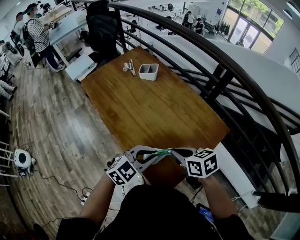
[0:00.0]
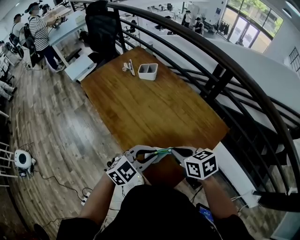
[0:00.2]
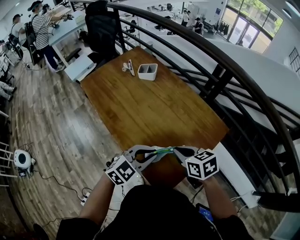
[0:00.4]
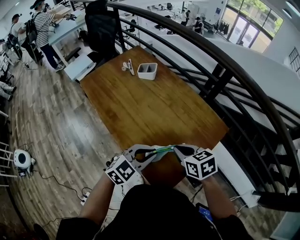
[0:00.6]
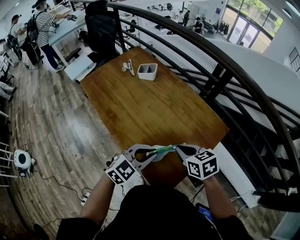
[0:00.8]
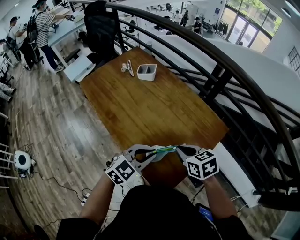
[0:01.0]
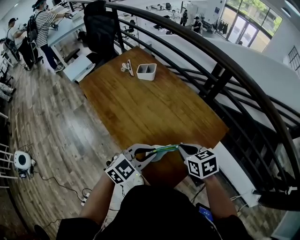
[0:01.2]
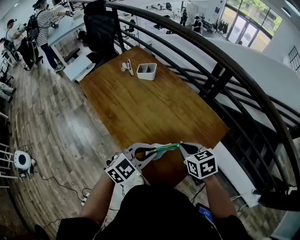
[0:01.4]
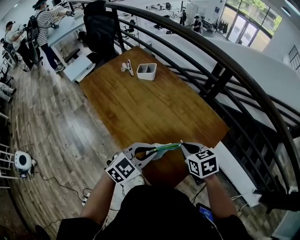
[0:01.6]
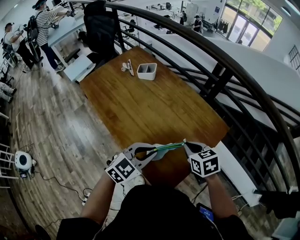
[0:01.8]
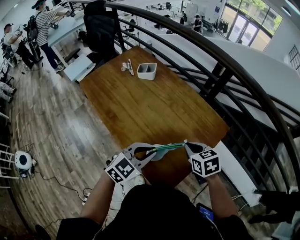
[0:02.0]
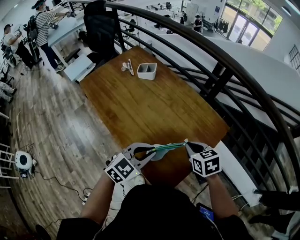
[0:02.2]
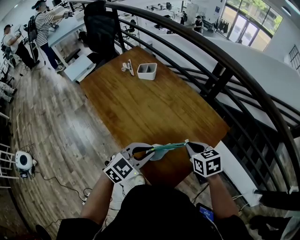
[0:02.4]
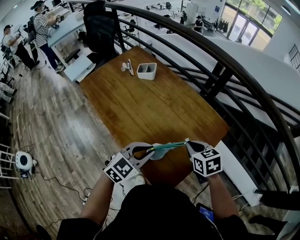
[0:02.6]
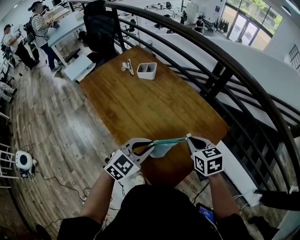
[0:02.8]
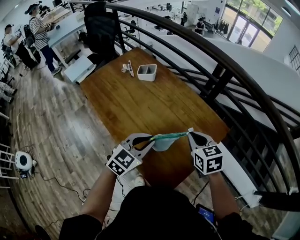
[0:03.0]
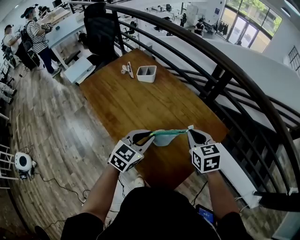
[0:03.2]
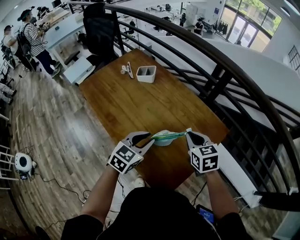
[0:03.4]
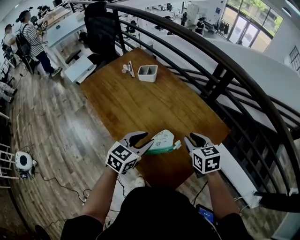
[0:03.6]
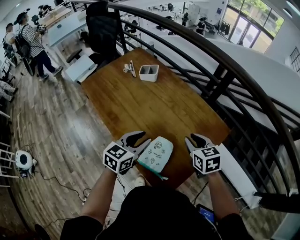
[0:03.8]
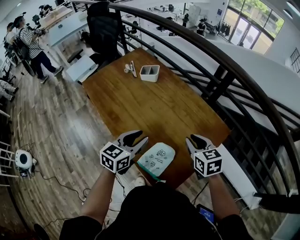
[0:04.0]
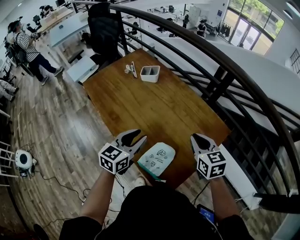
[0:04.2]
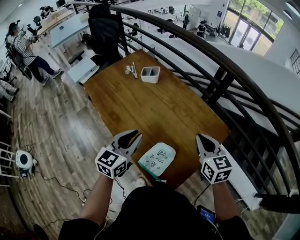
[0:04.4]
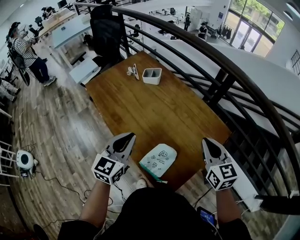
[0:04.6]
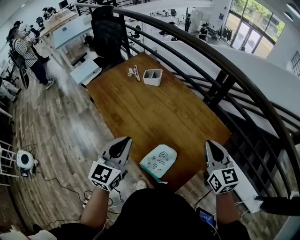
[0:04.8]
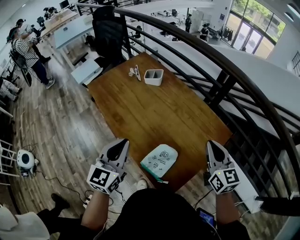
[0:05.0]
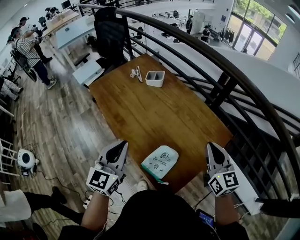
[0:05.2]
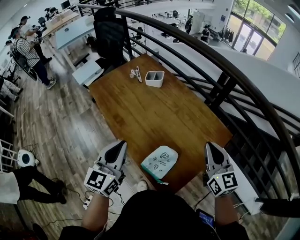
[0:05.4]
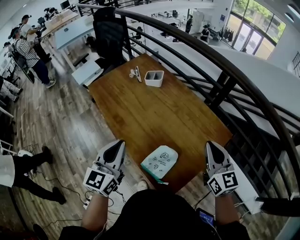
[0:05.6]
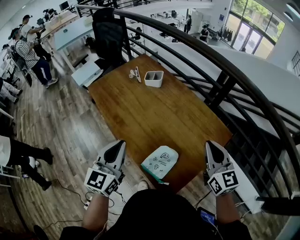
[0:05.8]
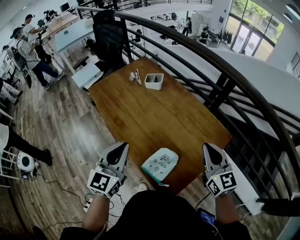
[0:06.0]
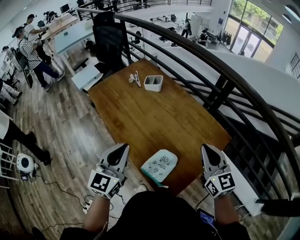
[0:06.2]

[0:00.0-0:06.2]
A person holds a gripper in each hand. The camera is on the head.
0:00.0 to 0:01.6: The right gripper changes place by roughly 5 cm.
0:01.6 to 0:03.2: The two grippers go some 5 cm forward.
0:03.2 to 0:04.6: The left gripper moves to the left and upward, roughly 10 cm, rotates approximately 20 degrees, and opens, then closes once more. Meanwhile the right gripper travels upward by roughly 5 cm, and opens, then closes again.
0:04.6 to 0:06.2: The left gripper shifts by roughly 5 cm.

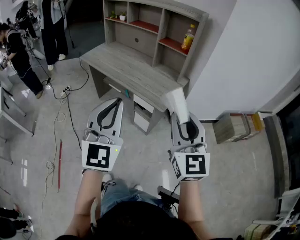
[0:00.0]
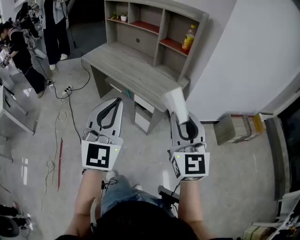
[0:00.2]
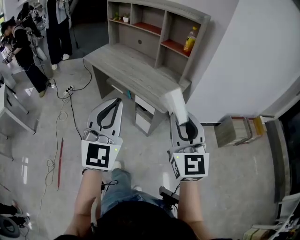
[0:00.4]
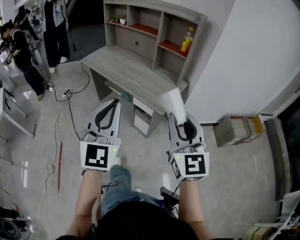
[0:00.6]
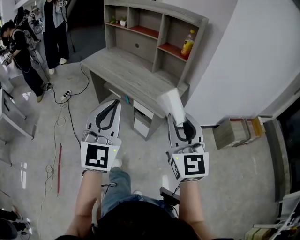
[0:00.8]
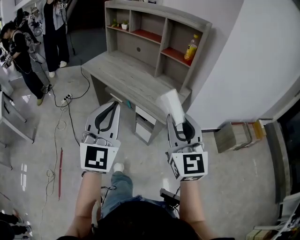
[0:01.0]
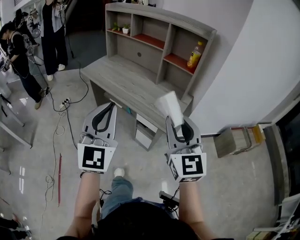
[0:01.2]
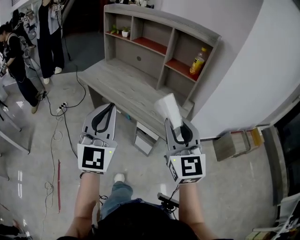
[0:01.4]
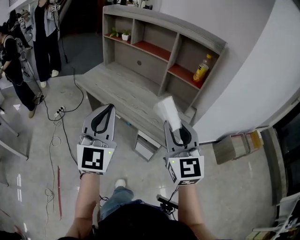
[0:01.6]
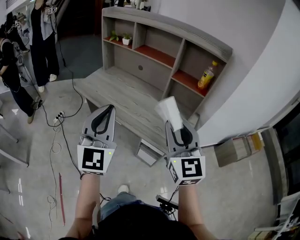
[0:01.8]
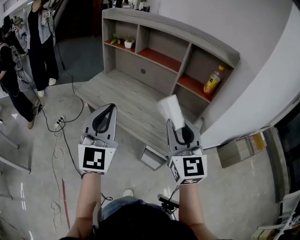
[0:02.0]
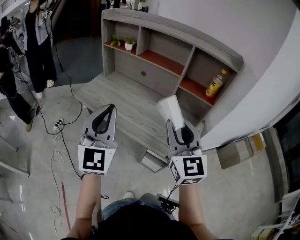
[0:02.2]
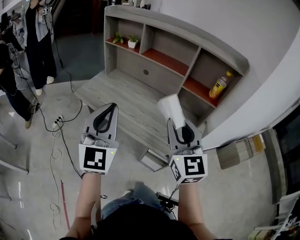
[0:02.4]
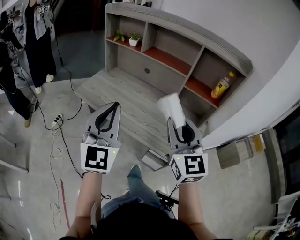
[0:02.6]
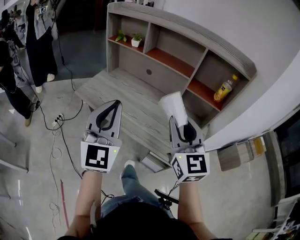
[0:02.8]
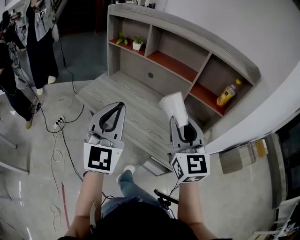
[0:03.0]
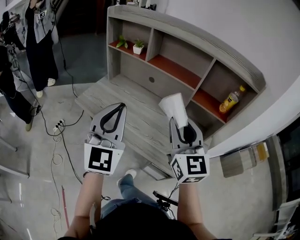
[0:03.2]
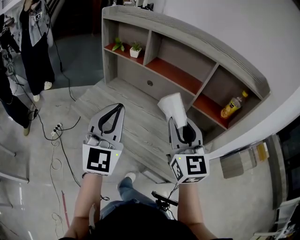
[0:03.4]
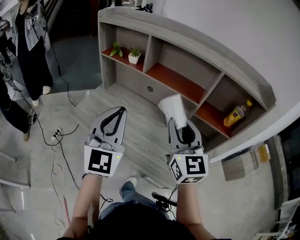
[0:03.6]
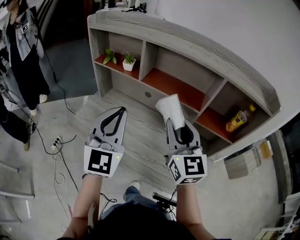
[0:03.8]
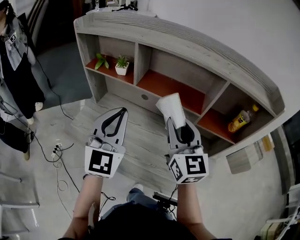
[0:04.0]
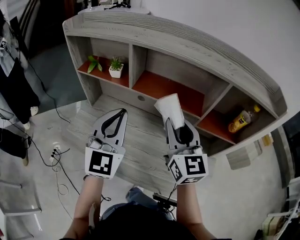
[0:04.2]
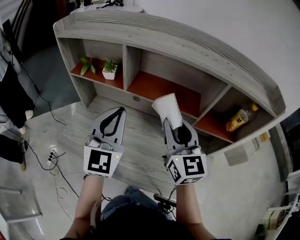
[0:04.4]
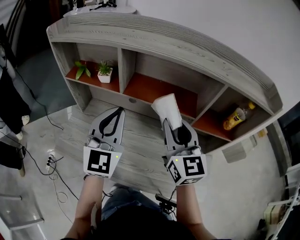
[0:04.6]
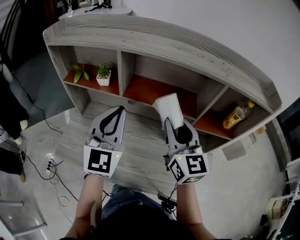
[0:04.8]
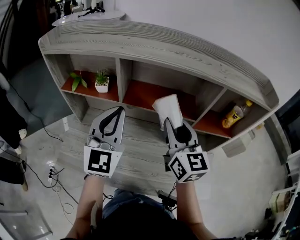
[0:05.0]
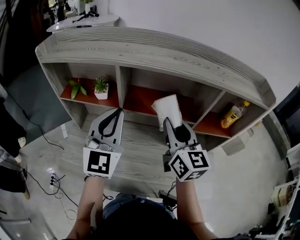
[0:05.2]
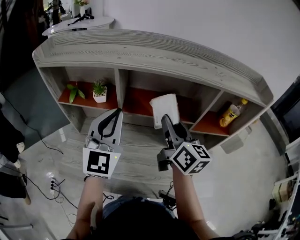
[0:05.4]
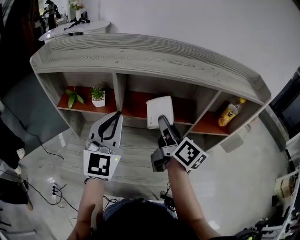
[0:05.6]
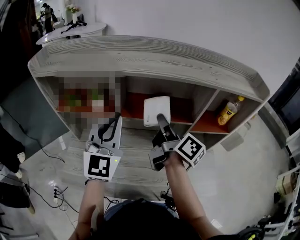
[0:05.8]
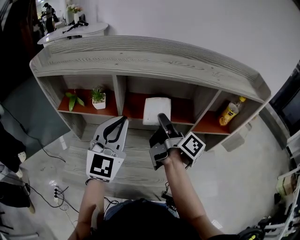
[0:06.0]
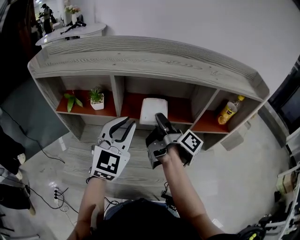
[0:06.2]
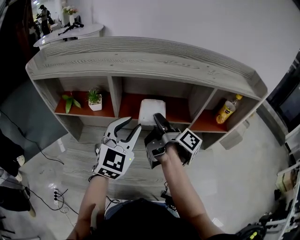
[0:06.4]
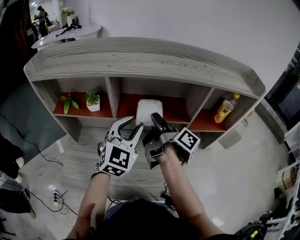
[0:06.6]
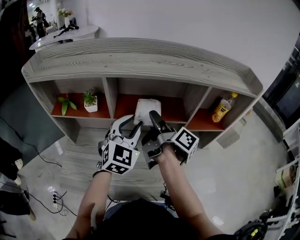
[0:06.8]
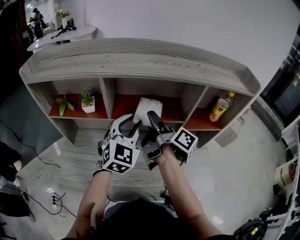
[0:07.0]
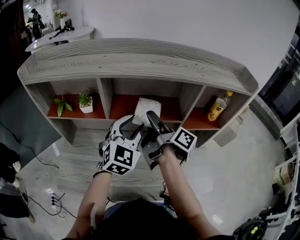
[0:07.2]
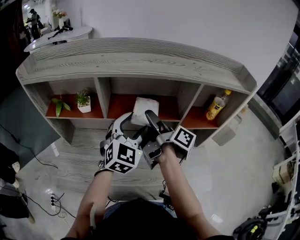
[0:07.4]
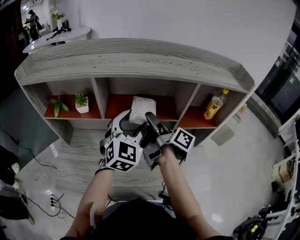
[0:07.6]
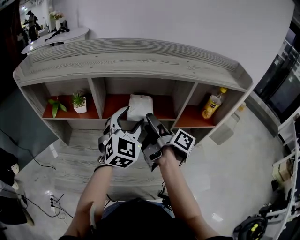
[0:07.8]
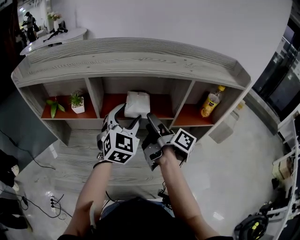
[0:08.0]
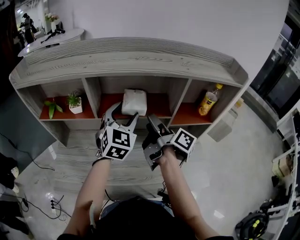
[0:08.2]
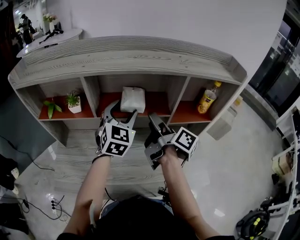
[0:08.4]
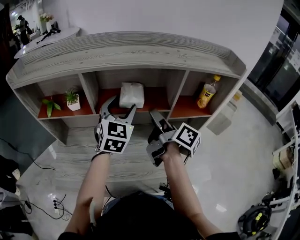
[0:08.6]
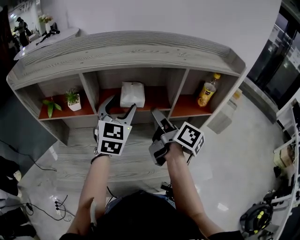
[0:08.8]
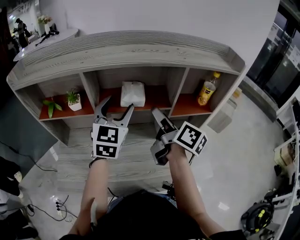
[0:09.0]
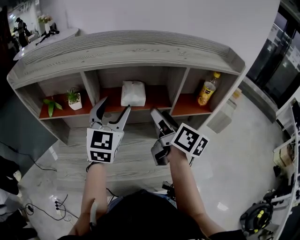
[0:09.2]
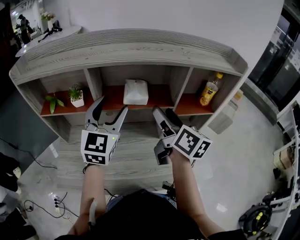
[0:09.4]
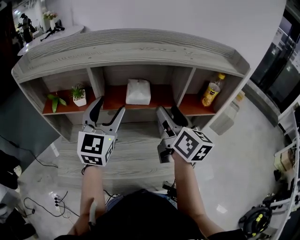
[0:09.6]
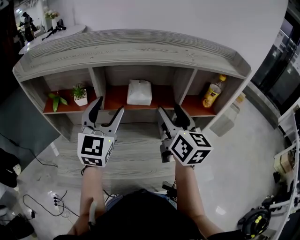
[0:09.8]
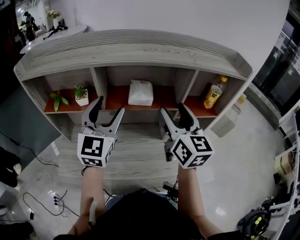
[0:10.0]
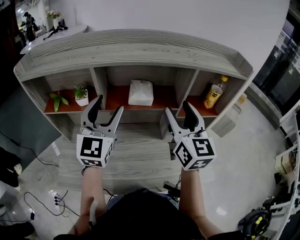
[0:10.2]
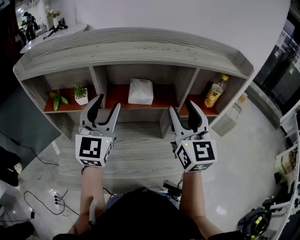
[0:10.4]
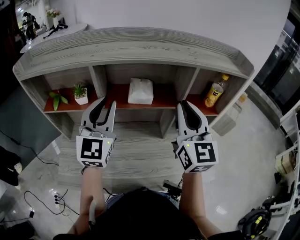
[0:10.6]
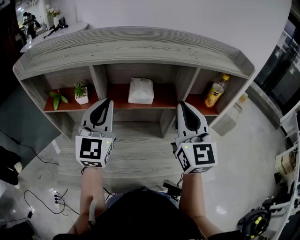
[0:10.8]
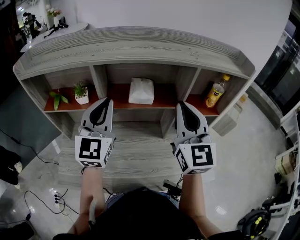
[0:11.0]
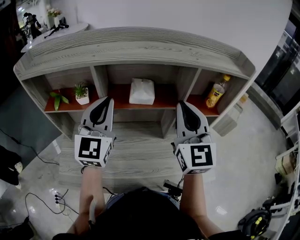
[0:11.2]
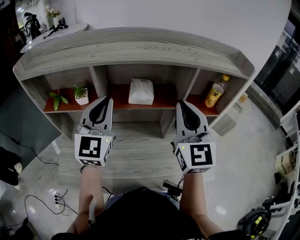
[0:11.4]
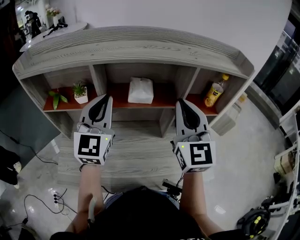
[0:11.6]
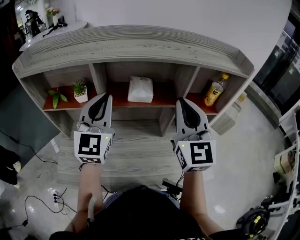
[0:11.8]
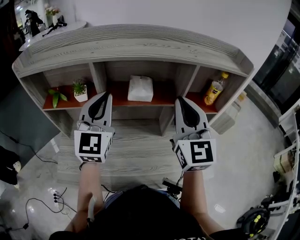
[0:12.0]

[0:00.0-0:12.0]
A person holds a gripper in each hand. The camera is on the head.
0:00.0 to 0:01.6: Both grippers move forward and to the left, some 25 cm.
0:01.6 to 0:03.0: The grippers both shift forward and to the left by roughly 25 cm.
0:03.0 to 0:04.4: The grippers both shift forward by roughly 30 cm.
0:04.4 to 0:06.0: The two grippers go about 5 cm forward. The right gripper rotates around the line of its fingers by approximately 80 degrees, clockwise from behind.
0:06.0 to 0:07.6: The left gripper heads to the right and downward, covering roughly 10 cm, and opens its fingers. Meanwhile the right gripper opens up.
0:07.6 to 0:09.0: The right gripper goes about 5 cm to the right, and changes its angle by roughly 30 degrees.
0:09.0 to 0:10.4: The left gripper moves to the left, about 5 cm, while the right gripper travels upward by about 10 cm, and rotates around the line of its fingers by roughly 60 degrees, counterclockwise from behind.
0:10.4 to 0:12.0: The left gripper closes up, while the right gripper closes.

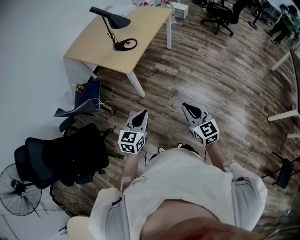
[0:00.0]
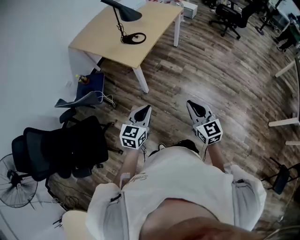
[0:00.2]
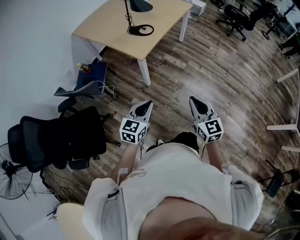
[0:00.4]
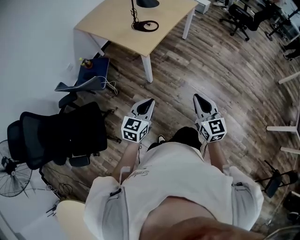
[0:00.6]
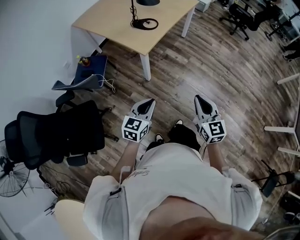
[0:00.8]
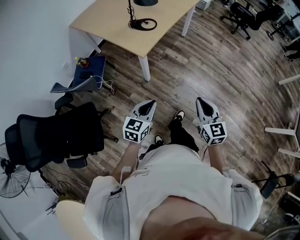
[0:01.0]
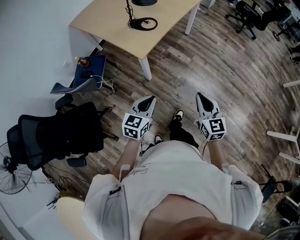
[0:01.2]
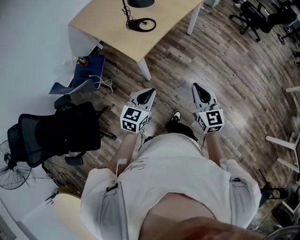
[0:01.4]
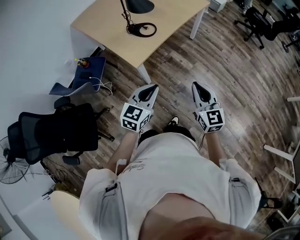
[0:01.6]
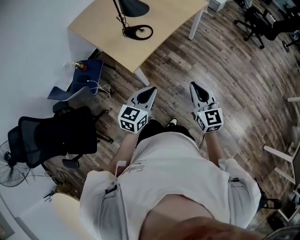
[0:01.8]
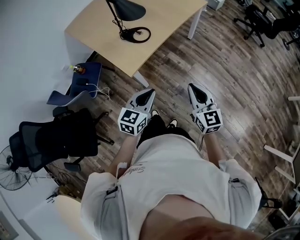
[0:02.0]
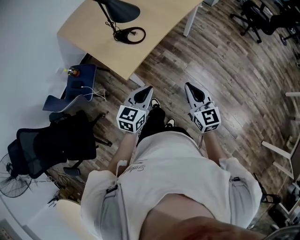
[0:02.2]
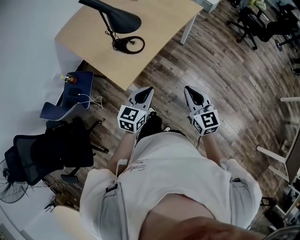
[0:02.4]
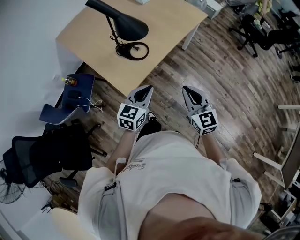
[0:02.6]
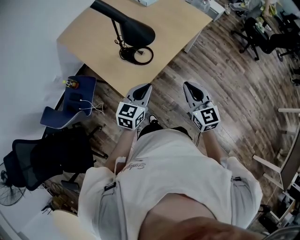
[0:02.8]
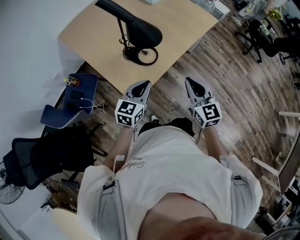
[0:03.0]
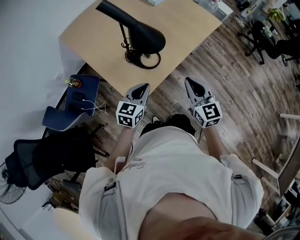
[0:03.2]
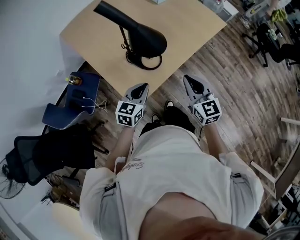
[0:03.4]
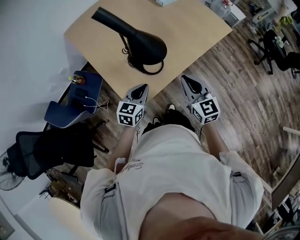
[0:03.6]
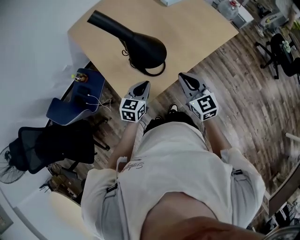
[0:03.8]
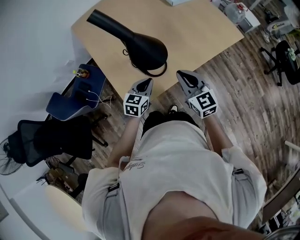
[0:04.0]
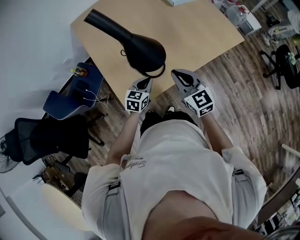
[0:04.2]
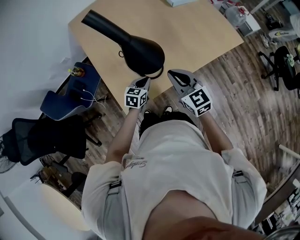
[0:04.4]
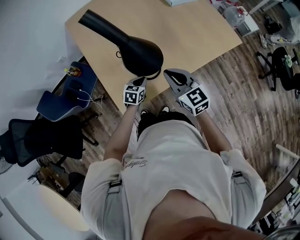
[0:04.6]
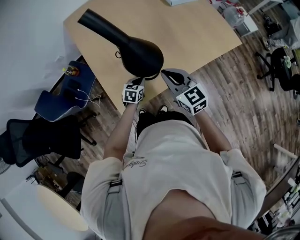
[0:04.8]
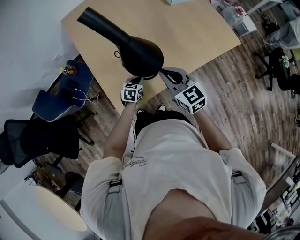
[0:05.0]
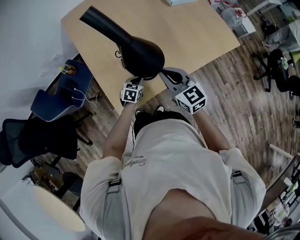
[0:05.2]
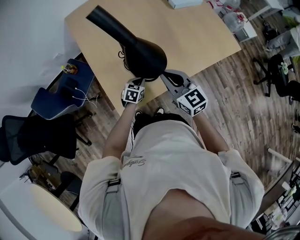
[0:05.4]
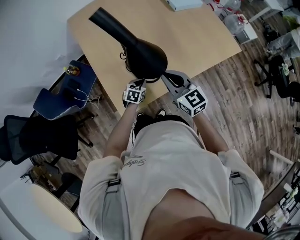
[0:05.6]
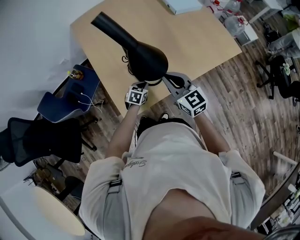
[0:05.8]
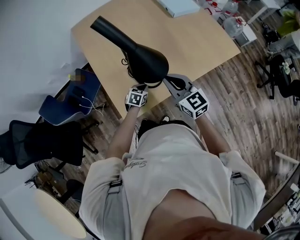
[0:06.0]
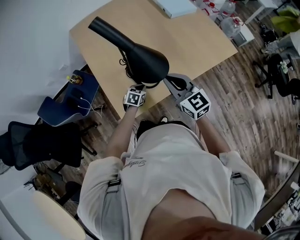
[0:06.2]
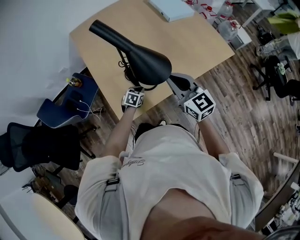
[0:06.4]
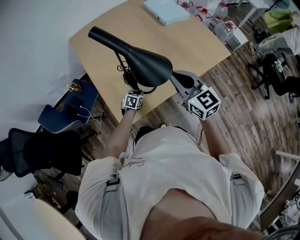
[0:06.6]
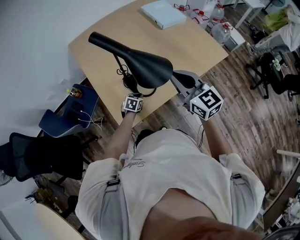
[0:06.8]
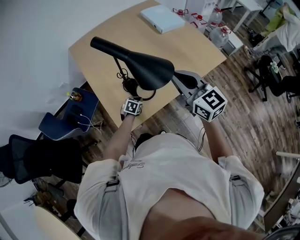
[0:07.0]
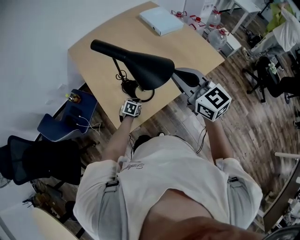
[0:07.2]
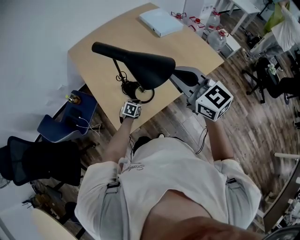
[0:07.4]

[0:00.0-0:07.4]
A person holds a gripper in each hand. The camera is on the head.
0:00.0 to 0:01.4: The grippers both shift forward by roughly 20 cm.
0:01.4 to 0:03.0: The two grippers go approximately 35 cm forward.
0:03.0 to 0:04.4: The left gripper is displaced downward and forward by about 25 cm, and rotates some 30 degrees; the right gripper moves forward, roughly 20 cm, and changes its angle by about 30 degrees.
0:04.4 to 0:06.0: The left gripper travels downward by some 5 cm.
0:06.0 to 0:07.4: The right gripper travels upward by some 20 cm.
